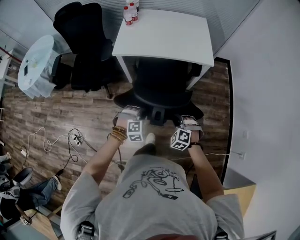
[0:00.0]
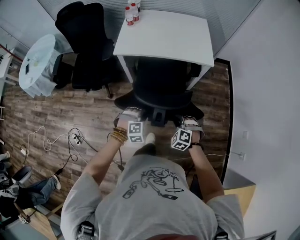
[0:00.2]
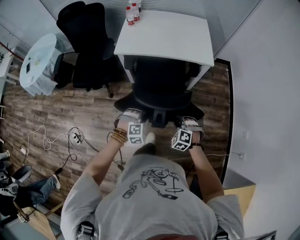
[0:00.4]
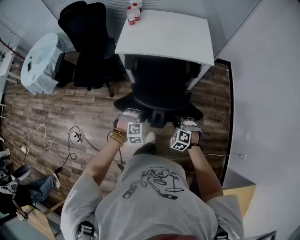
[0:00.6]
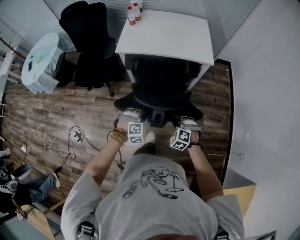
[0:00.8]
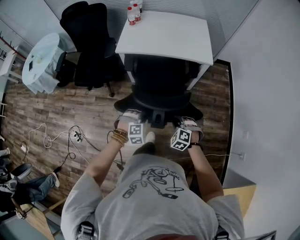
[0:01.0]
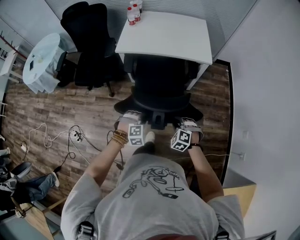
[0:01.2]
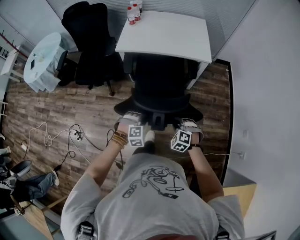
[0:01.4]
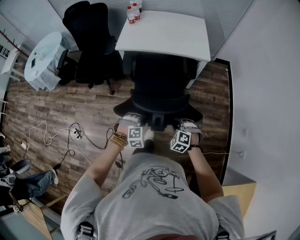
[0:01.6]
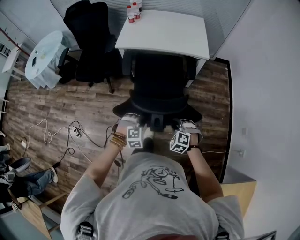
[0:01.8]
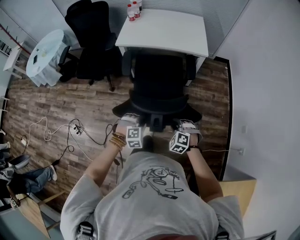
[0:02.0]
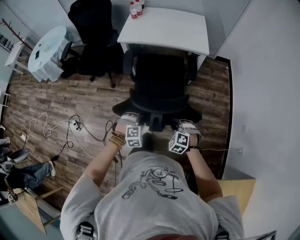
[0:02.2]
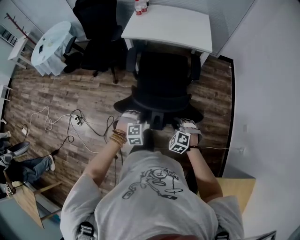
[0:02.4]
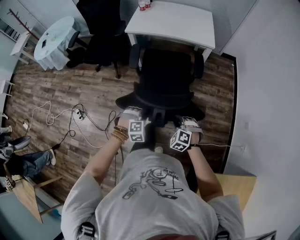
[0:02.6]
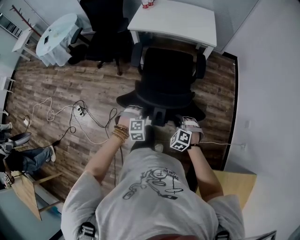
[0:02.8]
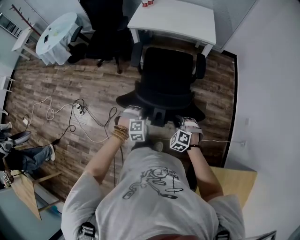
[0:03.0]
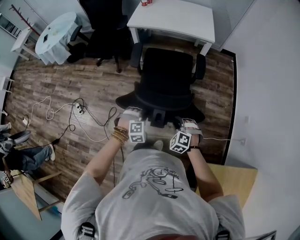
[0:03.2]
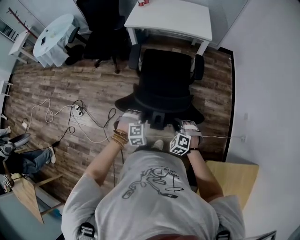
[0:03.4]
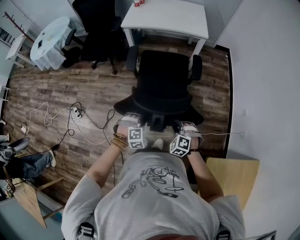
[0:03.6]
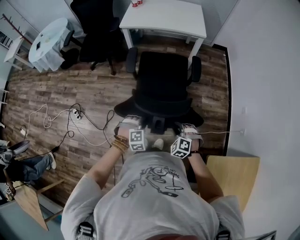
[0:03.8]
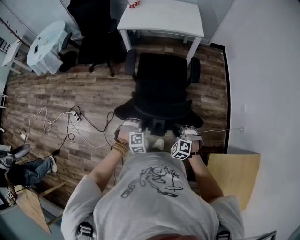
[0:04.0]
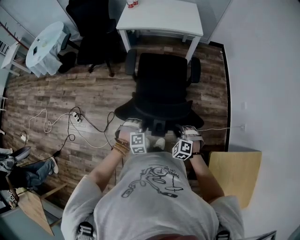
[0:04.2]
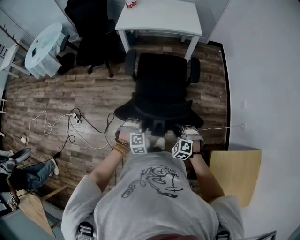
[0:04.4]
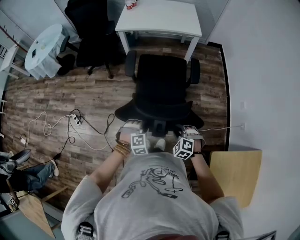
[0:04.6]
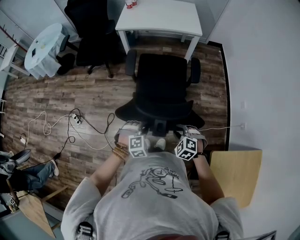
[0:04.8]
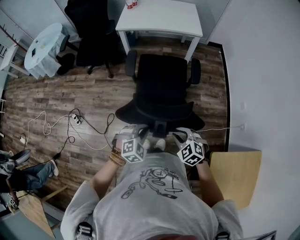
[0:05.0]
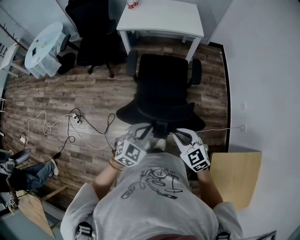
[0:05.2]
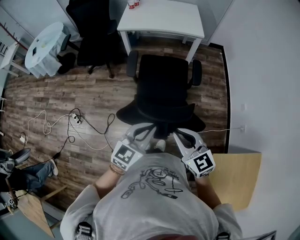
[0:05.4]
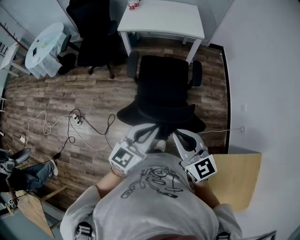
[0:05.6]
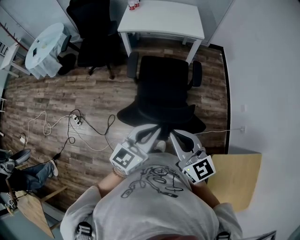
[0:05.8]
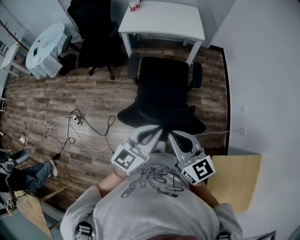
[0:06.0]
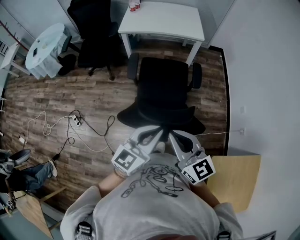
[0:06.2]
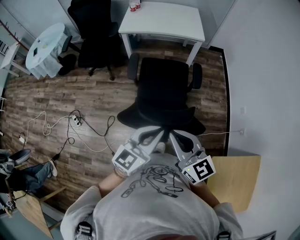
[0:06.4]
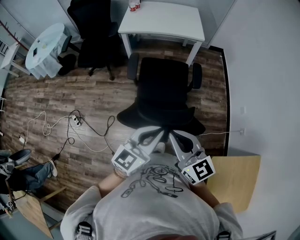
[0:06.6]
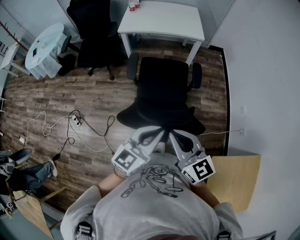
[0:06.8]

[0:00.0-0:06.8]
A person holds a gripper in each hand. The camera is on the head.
0.0 to 1.4 s: The two grippers go about 10 cm backward.
1.4 to 2.8 s: The two grippers go some 20 cm backward.
2.8 to 4.0 s: Both grippers move backward, approximately 15 cm.
4.0 to 5.4 s: The grippers both shift upward by some 25 cm. The right gripper tips its fingers upward by approximately 40 degrees, while the left gripper tips its fingers upward by some 40 degrees, and closes up.
5.4 to 6.8 s: The two grippers go about 5 cm upward.

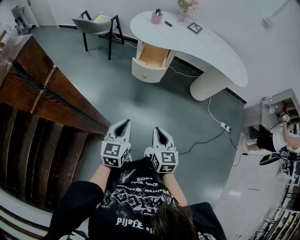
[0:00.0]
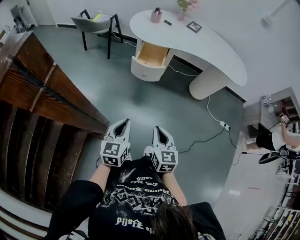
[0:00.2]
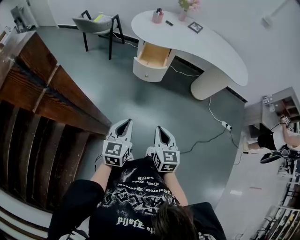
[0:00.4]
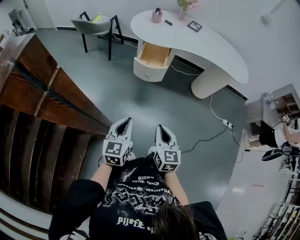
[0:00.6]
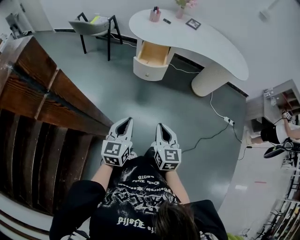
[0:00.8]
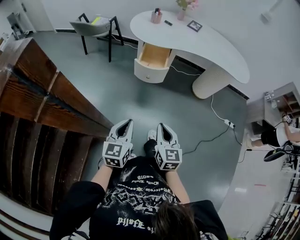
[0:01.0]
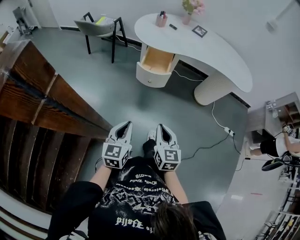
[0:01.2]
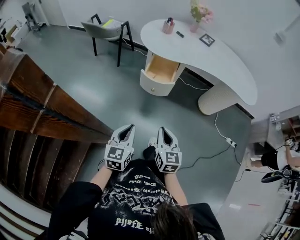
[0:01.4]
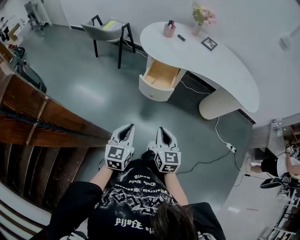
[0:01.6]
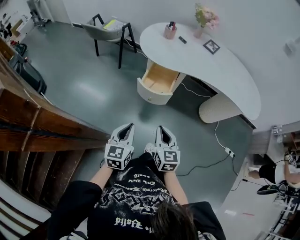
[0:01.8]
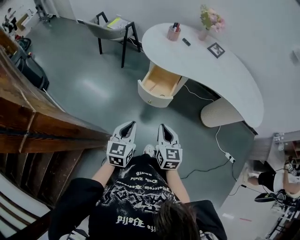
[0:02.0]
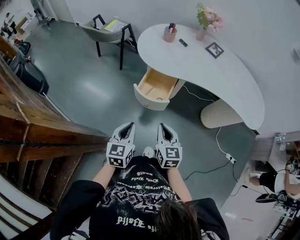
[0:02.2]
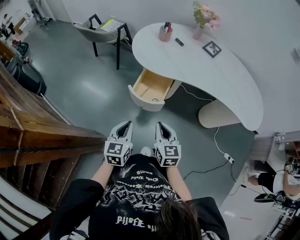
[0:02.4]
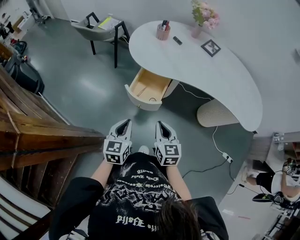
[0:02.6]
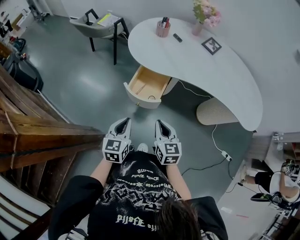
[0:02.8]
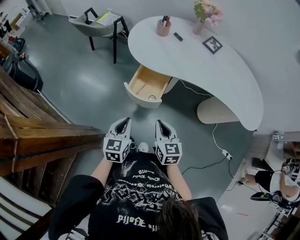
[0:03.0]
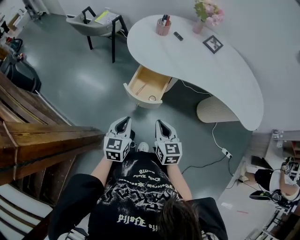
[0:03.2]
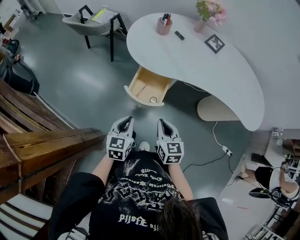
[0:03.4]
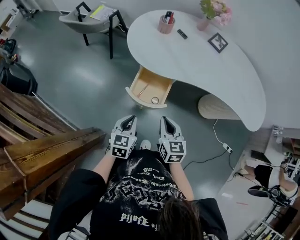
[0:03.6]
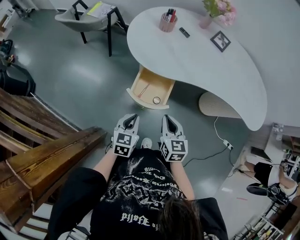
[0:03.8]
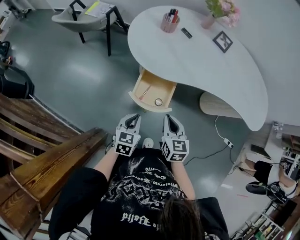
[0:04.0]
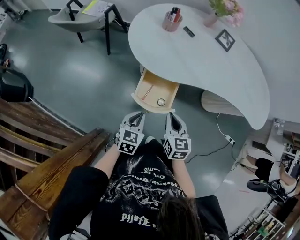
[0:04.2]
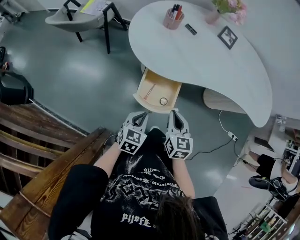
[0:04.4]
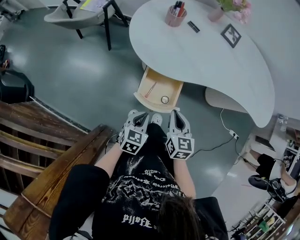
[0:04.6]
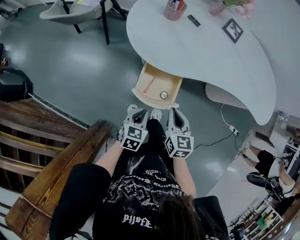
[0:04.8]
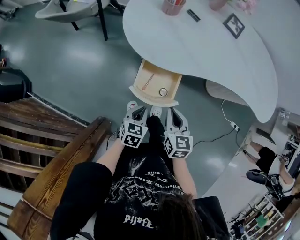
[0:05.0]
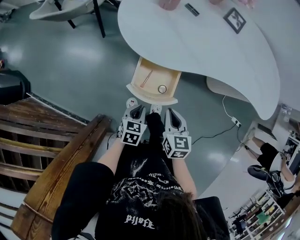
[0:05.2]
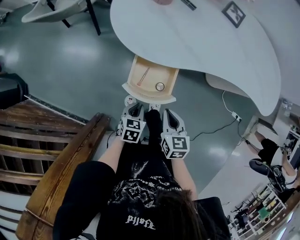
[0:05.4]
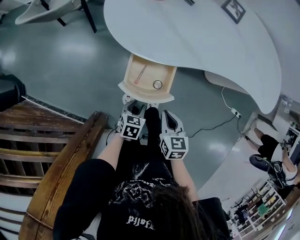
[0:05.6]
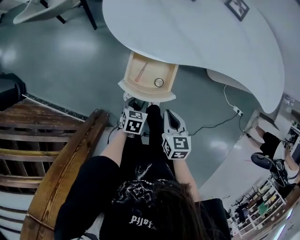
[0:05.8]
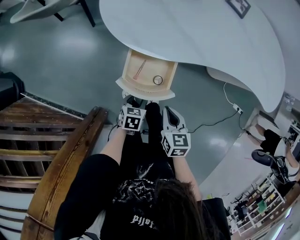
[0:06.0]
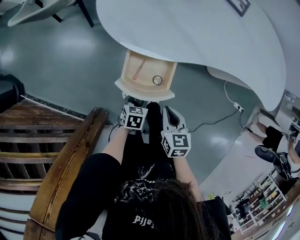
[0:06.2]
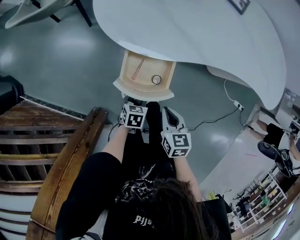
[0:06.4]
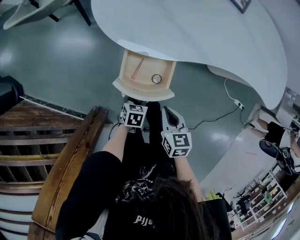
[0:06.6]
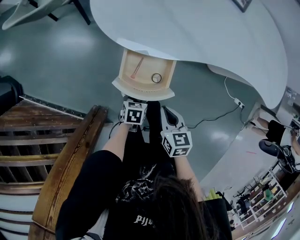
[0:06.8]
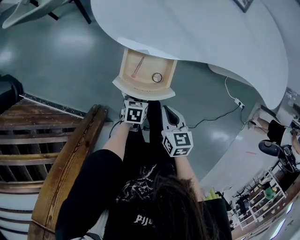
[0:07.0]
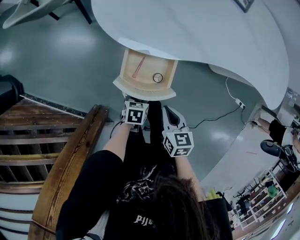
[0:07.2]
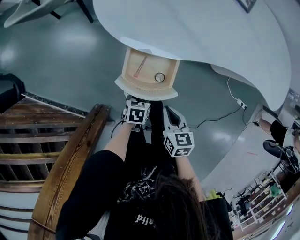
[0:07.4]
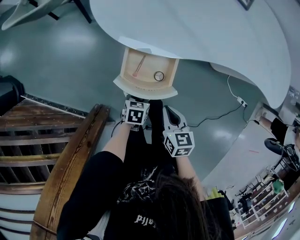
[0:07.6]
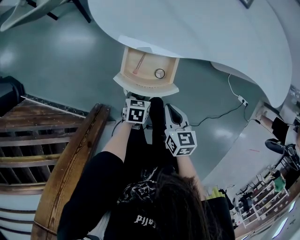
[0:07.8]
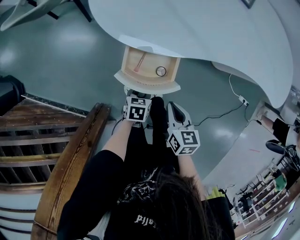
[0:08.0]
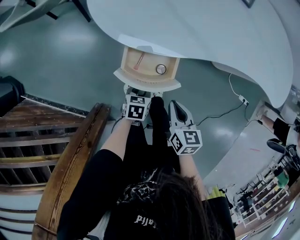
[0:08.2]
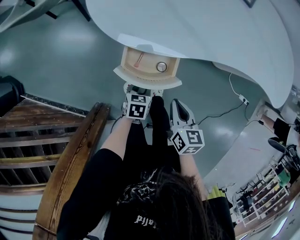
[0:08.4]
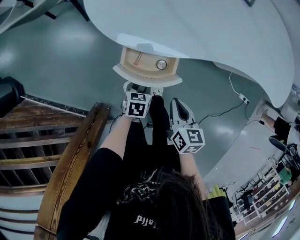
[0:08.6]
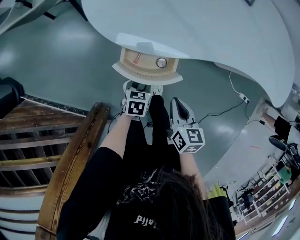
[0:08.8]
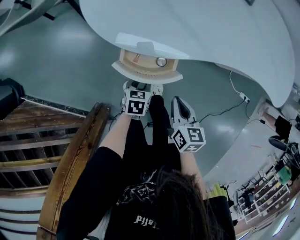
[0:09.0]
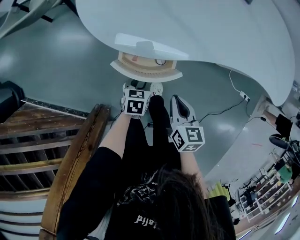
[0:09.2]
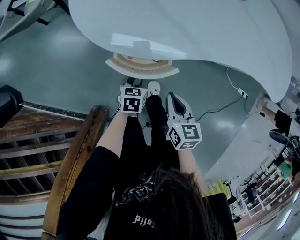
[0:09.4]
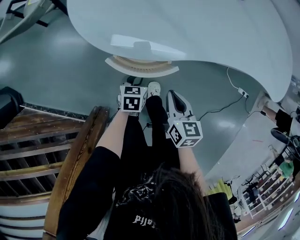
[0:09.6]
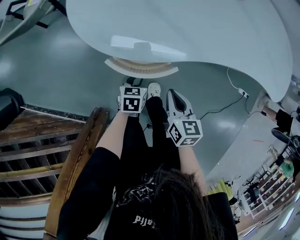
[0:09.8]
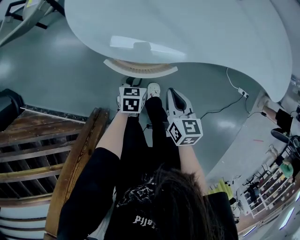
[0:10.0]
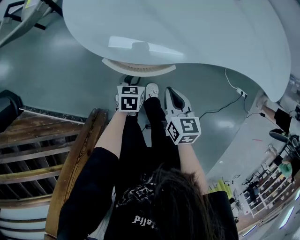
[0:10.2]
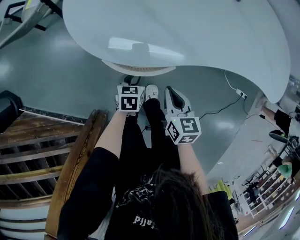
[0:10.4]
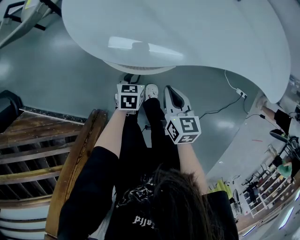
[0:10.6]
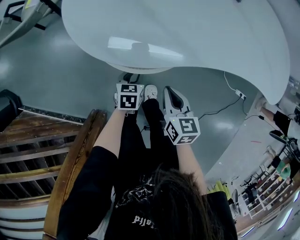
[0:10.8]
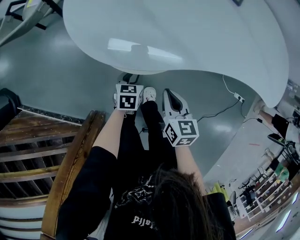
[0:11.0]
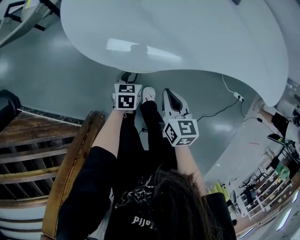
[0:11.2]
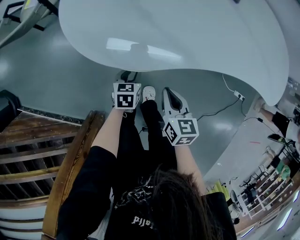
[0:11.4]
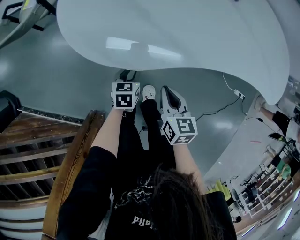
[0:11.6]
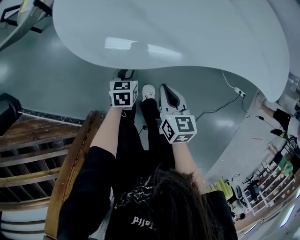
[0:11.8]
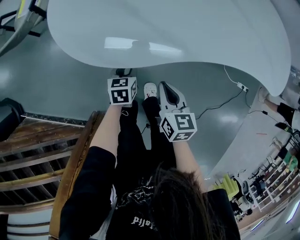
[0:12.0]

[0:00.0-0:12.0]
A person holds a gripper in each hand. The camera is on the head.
0.0 to 1.6 s: The two grippers go some 15 cm forward.
1.6 to 3.0 s: Both grippers move forward and to the right, some 20 cm.
3.0 to 4.4 s: The right gripper is displaced forward and to the left by about 15 cm, while the left gripper is displaced forward and downward by approximately 15 cm, and turns by about 30 degrees.
4.4 to 6.0 s: The left gripper is displaced downward by about 15 cm, changes its angle by roughly 20 degrees, and opens up, while the right gripper moves downward, approximately 10 cm.
6.0 to 7.6 s: The grippers move only a little.
7.6 to 9.0 s: The two grippers go some 5 cm forward.
9.0 to 10.4 s: Both grippers travel together forward, approximately 5 cm.
10.4 to 12.0 s: The grippers stay close to where they were, moving slightly.

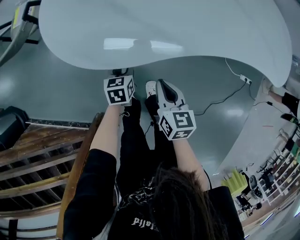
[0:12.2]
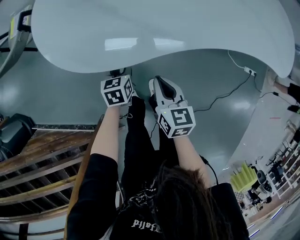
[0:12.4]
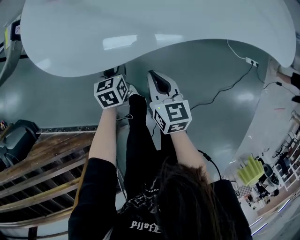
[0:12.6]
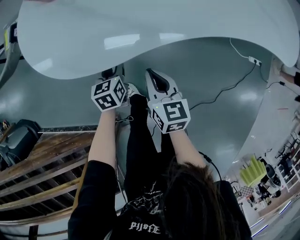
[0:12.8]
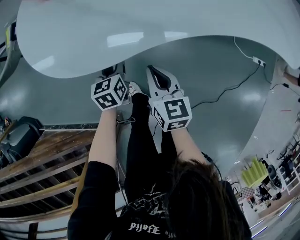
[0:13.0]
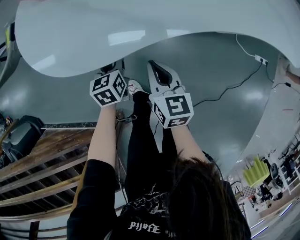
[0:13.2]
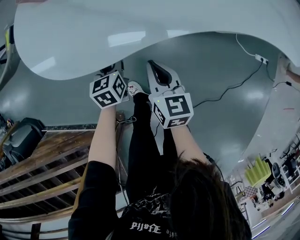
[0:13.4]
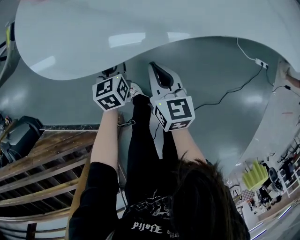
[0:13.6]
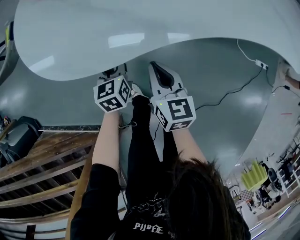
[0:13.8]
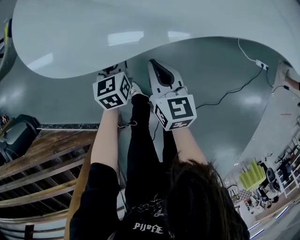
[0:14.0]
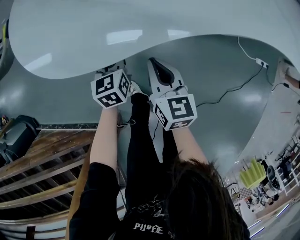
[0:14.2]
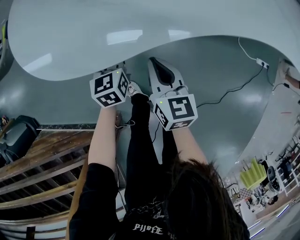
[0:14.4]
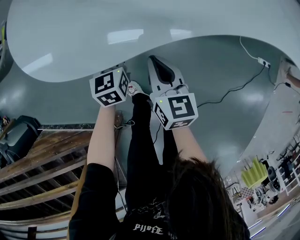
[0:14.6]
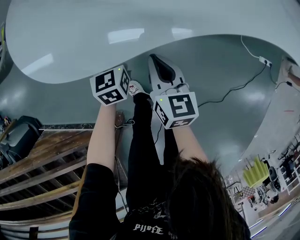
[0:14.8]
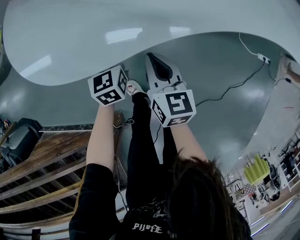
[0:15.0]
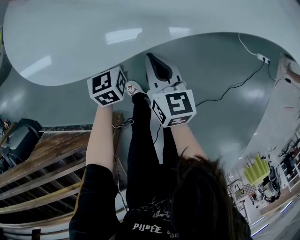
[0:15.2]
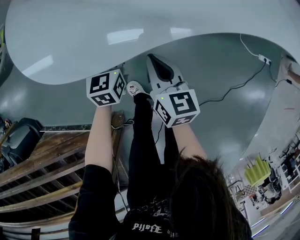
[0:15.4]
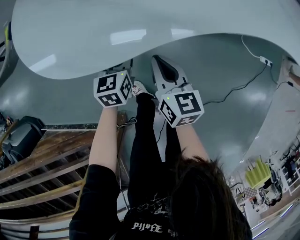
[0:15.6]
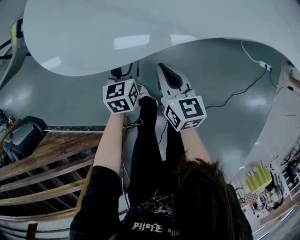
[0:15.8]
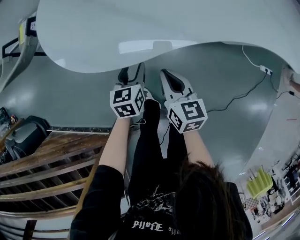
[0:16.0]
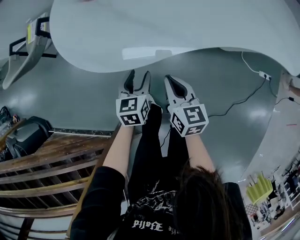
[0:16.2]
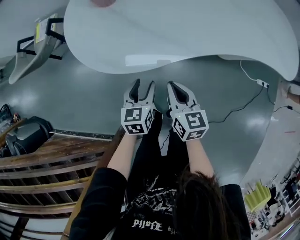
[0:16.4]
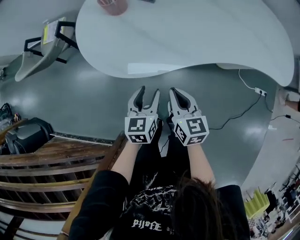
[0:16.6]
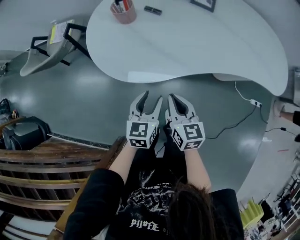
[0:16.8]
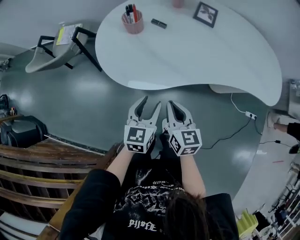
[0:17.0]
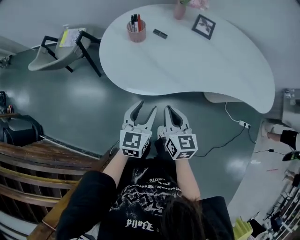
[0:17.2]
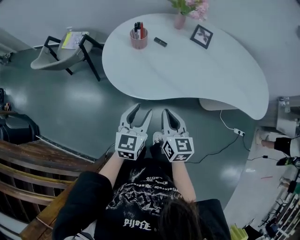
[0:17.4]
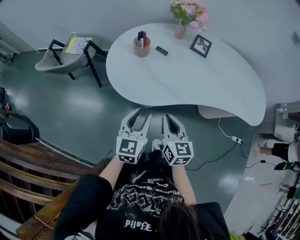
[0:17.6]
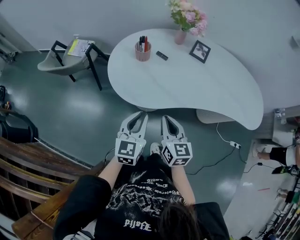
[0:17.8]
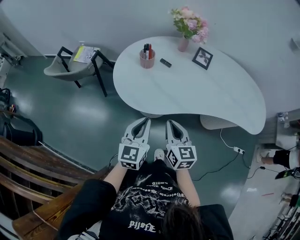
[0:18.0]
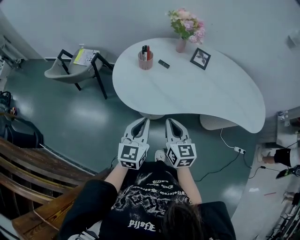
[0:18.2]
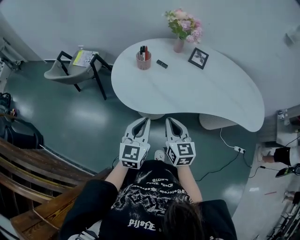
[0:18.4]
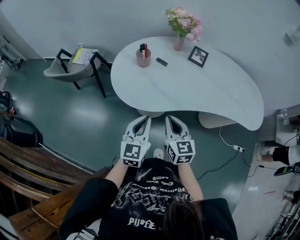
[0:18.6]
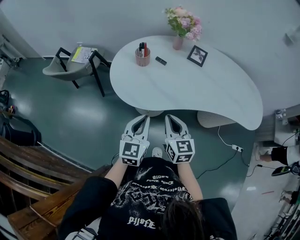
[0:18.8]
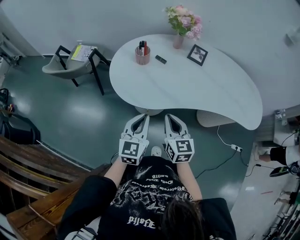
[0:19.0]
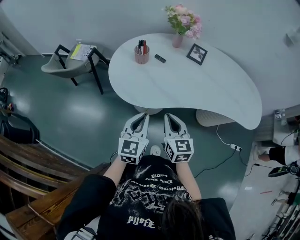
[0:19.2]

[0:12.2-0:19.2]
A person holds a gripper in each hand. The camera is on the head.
12.2 to 13.6 s: The right gripper moves some 5 cm.
13.6 to 15.0 s: There are only small adjustments of the grippers.
15.0 to 16.4 s: The two grippers go some 15 cm upward and backward. The left gripper opens.
16.4 to 17.8 s: Both grippers travel together upward, roughly 20 cm. The left gripper changes its angle by roughly 30 degrees, and closes.
17.8 to 19.2 s: There are only small adjustments of the grippers.
